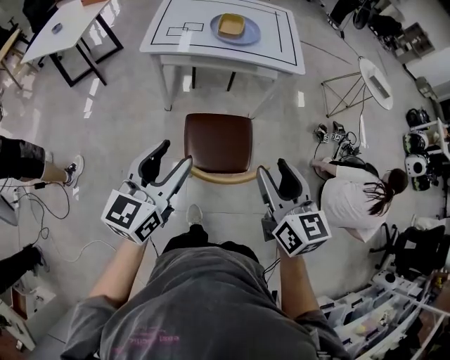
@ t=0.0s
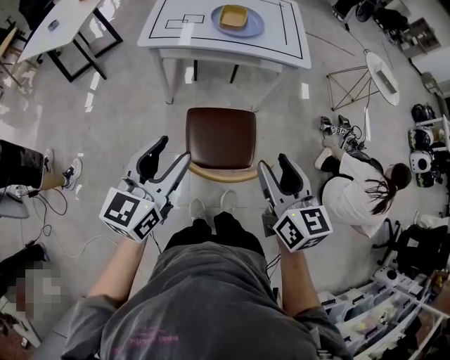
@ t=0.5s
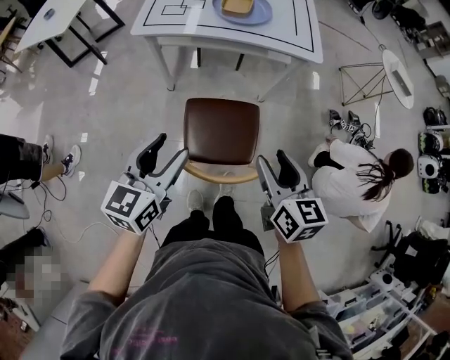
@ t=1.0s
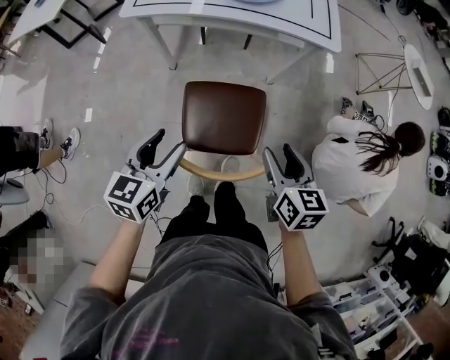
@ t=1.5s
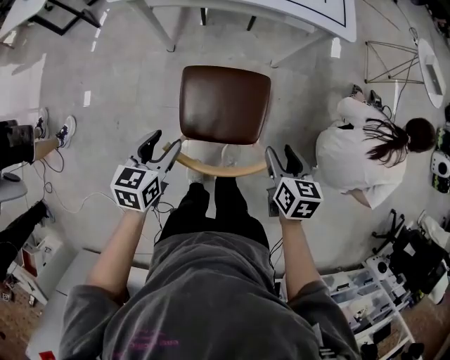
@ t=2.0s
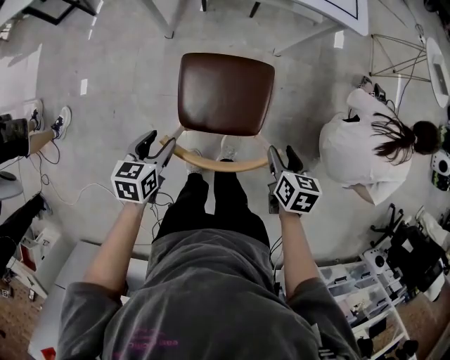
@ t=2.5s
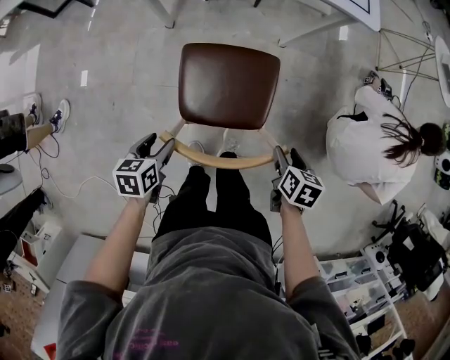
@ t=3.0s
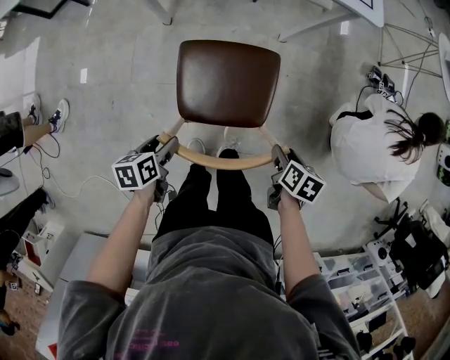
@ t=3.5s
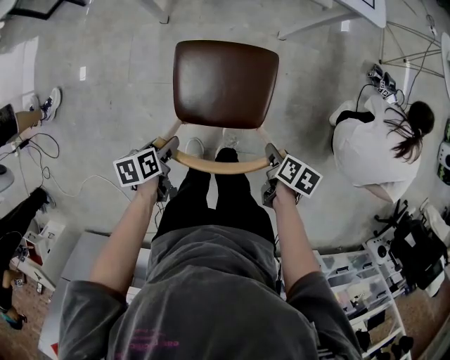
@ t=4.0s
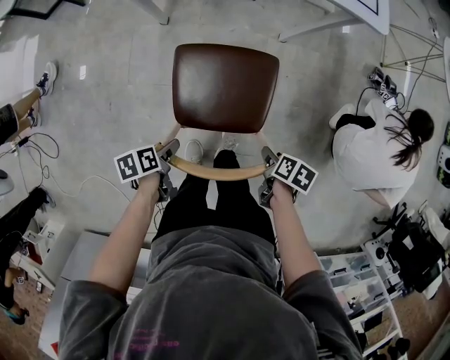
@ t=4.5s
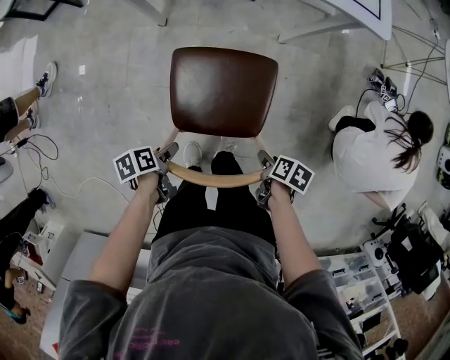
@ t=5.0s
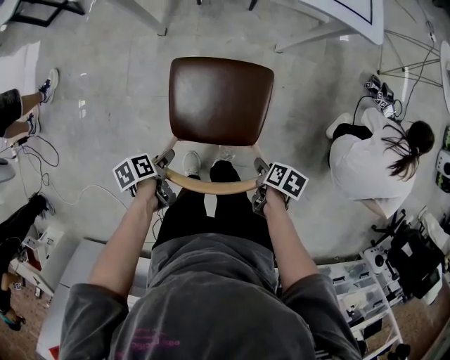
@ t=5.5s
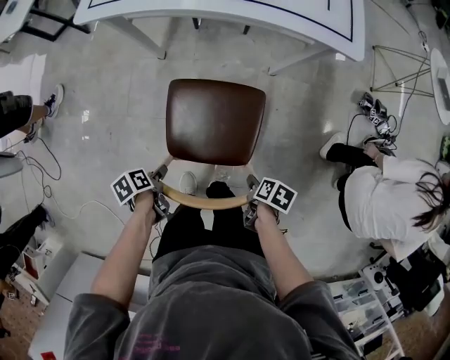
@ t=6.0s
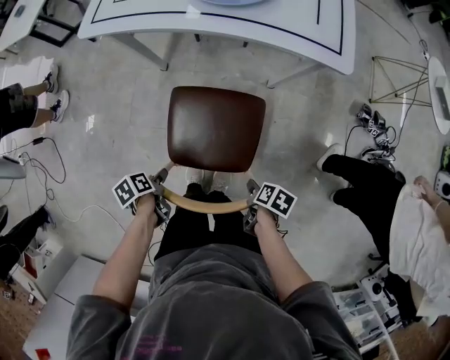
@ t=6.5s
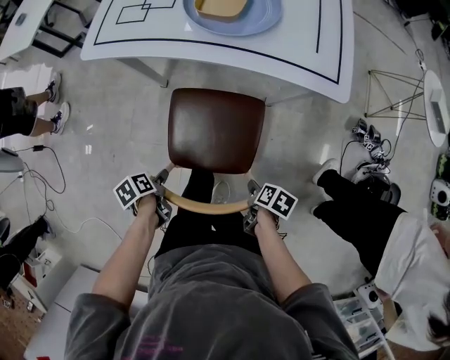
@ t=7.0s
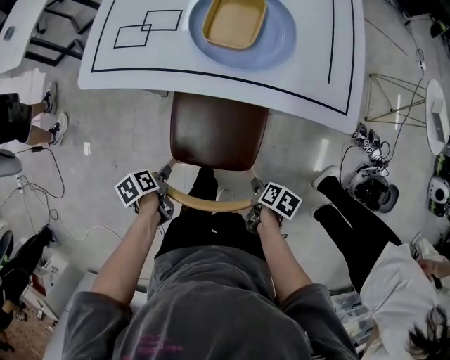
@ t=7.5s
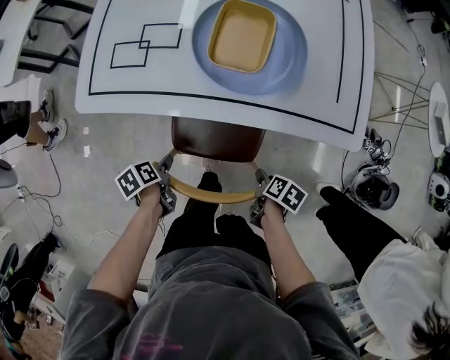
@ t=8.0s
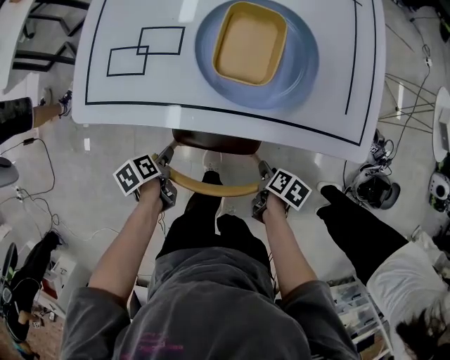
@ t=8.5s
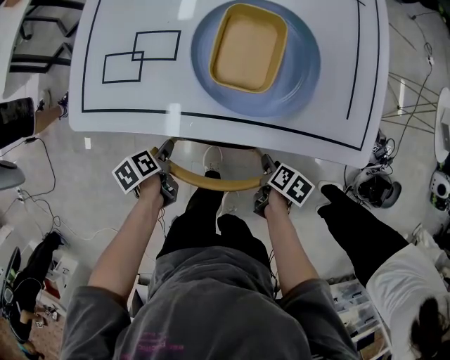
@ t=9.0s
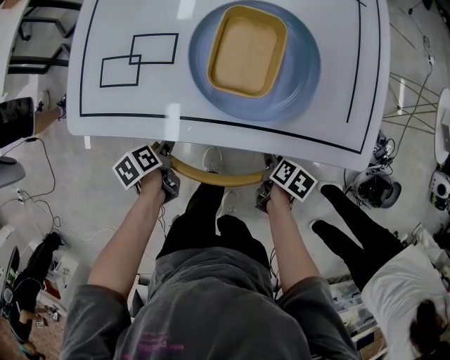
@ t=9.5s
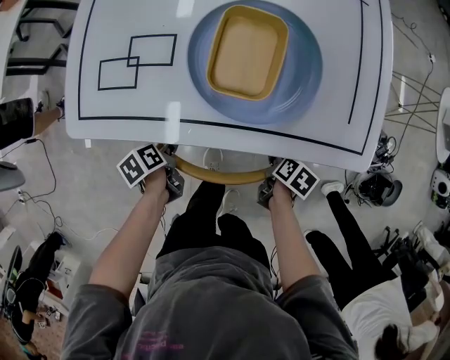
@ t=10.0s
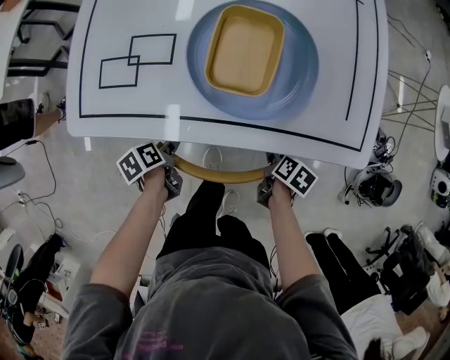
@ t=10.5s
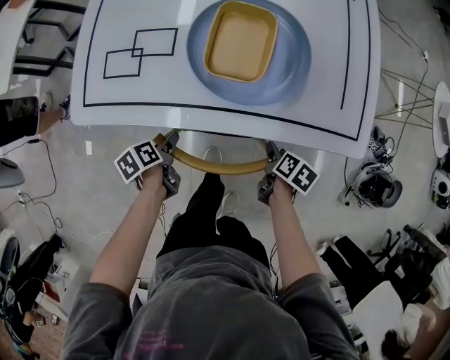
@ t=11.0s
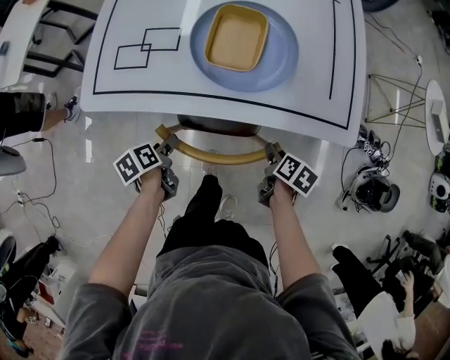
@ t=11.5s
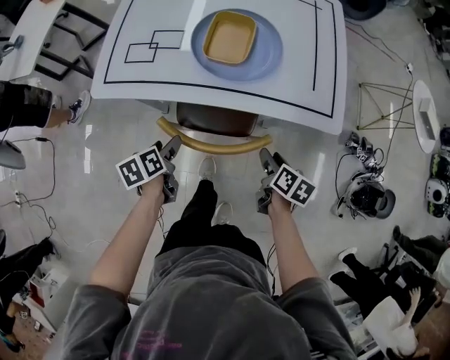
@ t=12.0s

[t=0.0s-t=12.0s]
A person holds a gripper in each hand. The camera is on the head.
t=0.0s to t=2.0s: The right gripper heads downward and forward, covering some 30 cm, and angles its fingers downward, by roughly 30 degrees. The left gripper goes some 30 cm downward, and points its fingers about 30 degrees further downward.
t=2.0s to t=4.0s: Both grippers move downward, roughly 15 cm. The right gripper rotates some 40 degrees. Meanwhile the left gripper changes its angle by about 40 degrees.
t=4.0s to t=6.0s: The left gripper changes its angle by some 20 degrees.
t=6.0s to t=8.0s: The right gripper ends up approximately 30 cm from where it was. Meanwhile the left gripper ends up about 30 cm from where it was.
t=8.0s to t=10.0s: Both grippers move forward, approximately 10 cm.
t=10.0s to t=12.0s: Both grippers move upward and backward, about 15 cm. The right gripper swivels approximately 30 degrees. The left gripper swivels roughly 20 degrees.

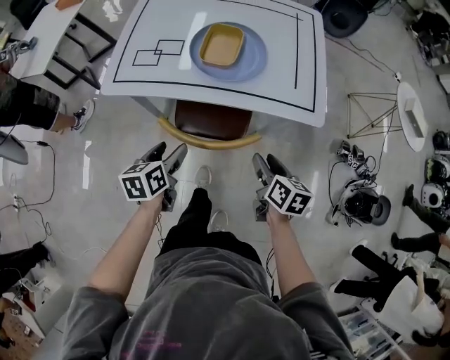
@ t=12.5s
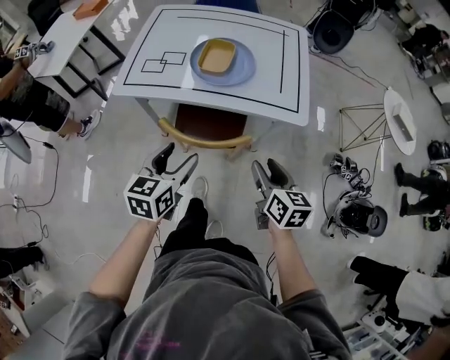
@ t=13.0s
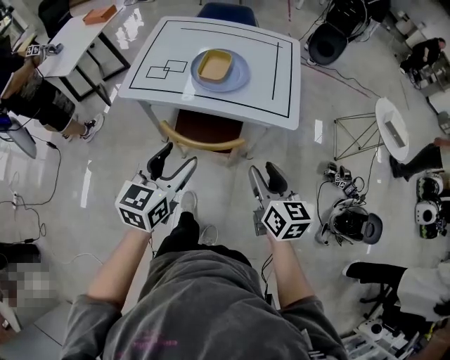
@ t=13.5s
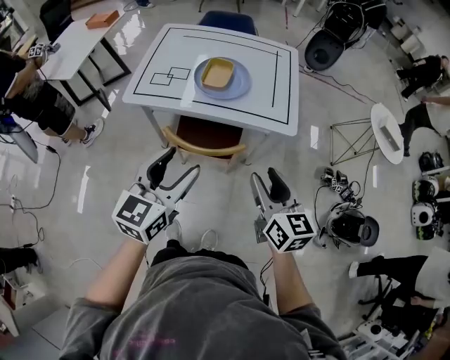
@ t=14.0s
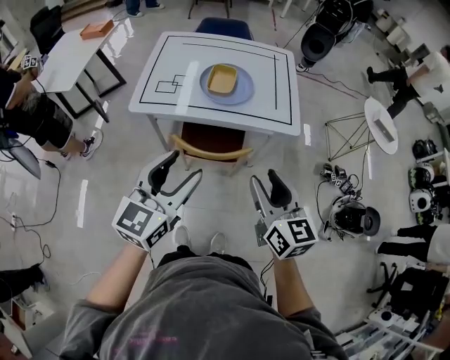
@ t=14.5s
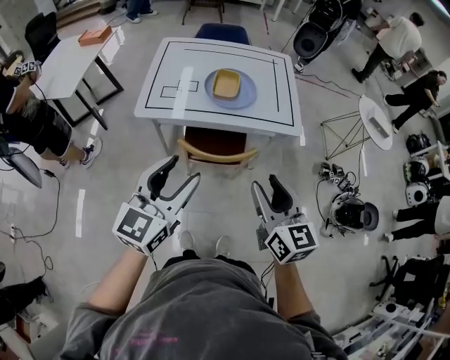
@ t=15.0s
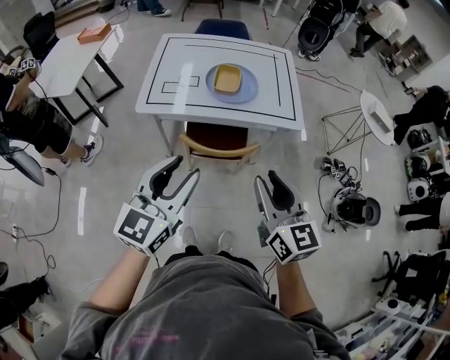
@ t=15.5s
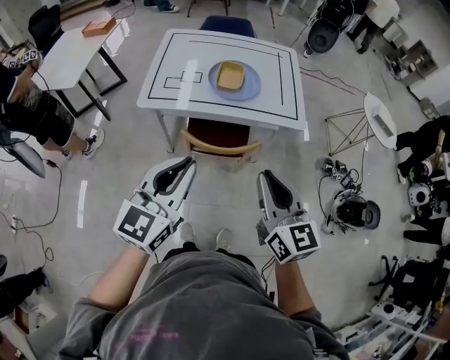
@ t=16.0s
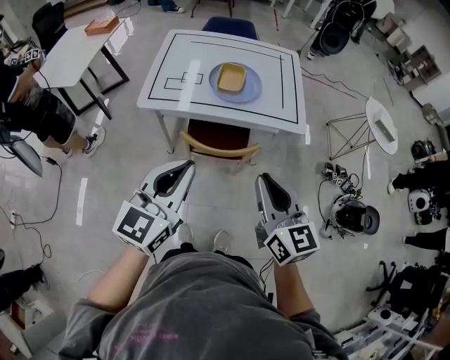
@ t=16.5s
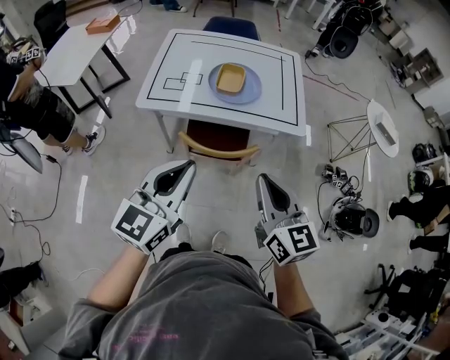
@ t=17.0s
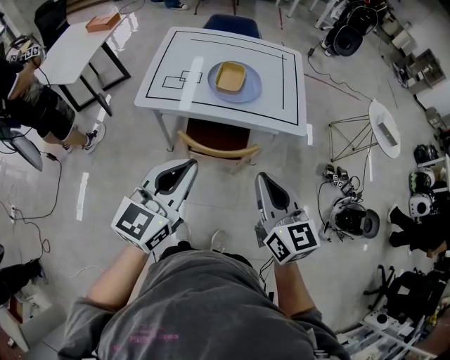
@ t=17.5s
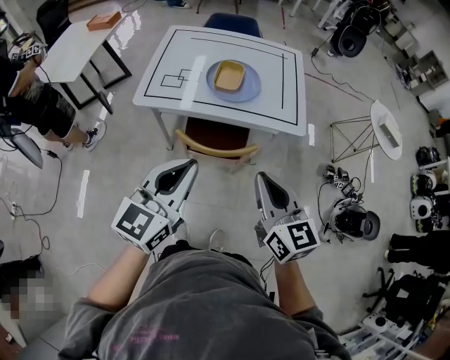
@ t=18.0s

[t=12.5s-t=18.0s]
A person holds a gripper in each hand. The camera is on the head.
t=12.5s to t=14.5s: Both grippers move upward and backward, about 30 cm. The right gripper swivels approximately 40 degrees, while the left gripper tilts its fingers about 30 degrees upward.
t=14.5s to t=16.0s: The right gripper ends up approximately 5 cm from where it was, and closes its fingers. The left gripper moves some 5 cm, and closes its fingers.
t=16.0s to t=18.0s: The right gripper changes place by approximately 5 cm; the left gripper moves approximately 5 cm.

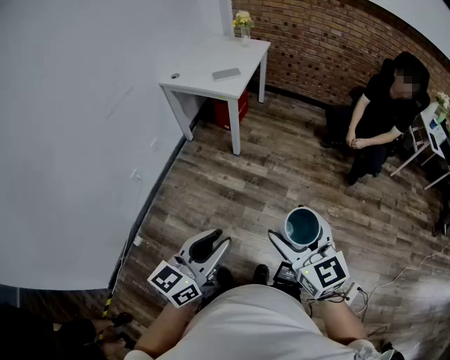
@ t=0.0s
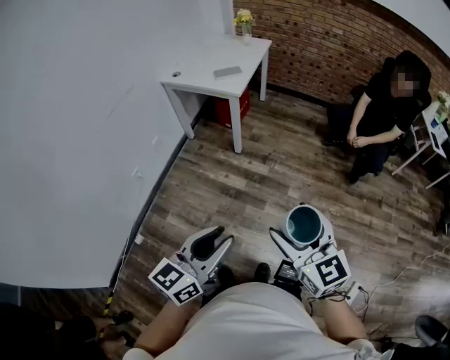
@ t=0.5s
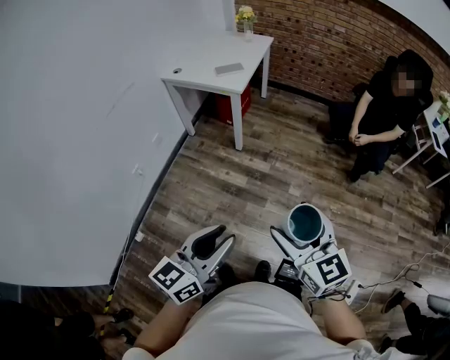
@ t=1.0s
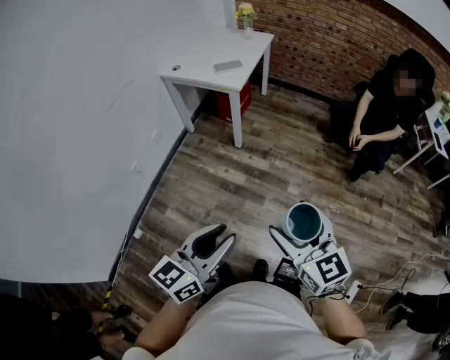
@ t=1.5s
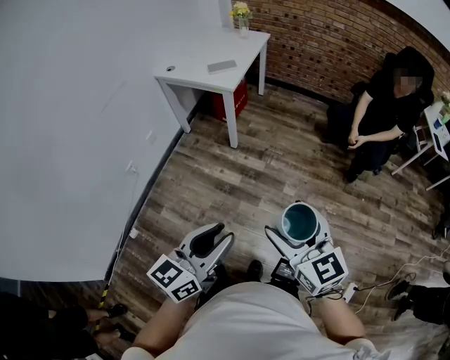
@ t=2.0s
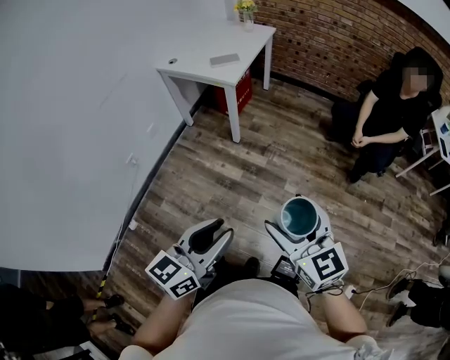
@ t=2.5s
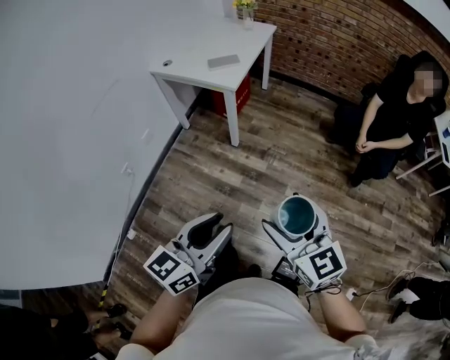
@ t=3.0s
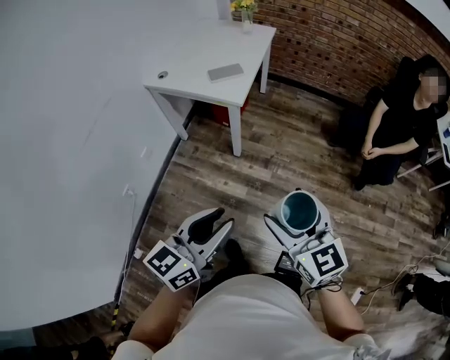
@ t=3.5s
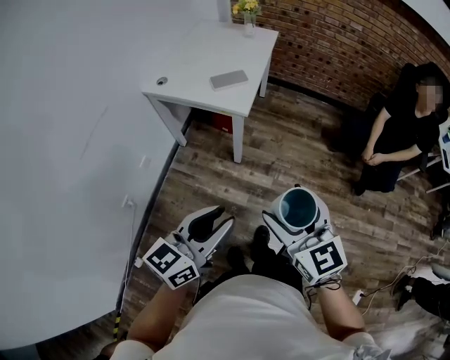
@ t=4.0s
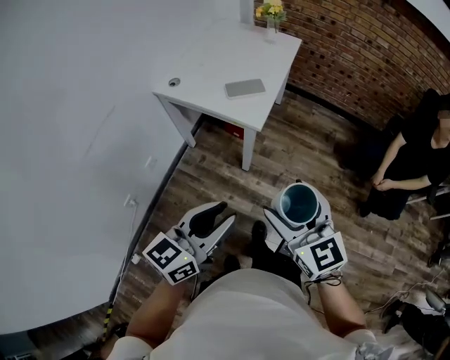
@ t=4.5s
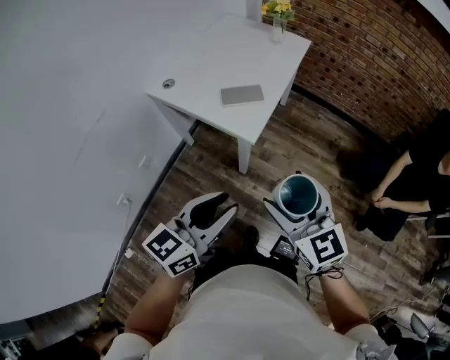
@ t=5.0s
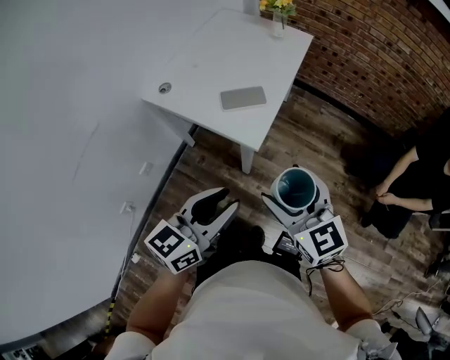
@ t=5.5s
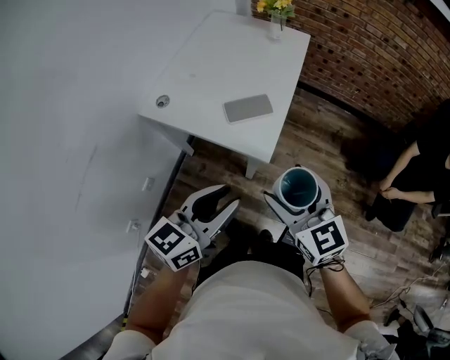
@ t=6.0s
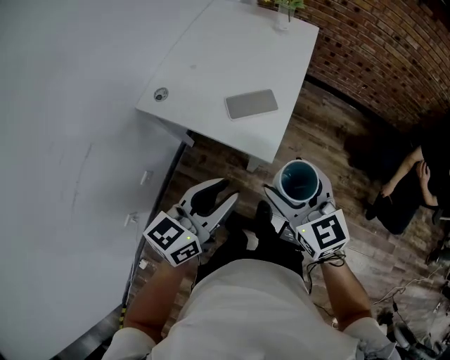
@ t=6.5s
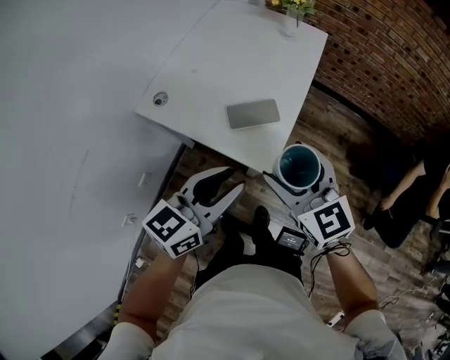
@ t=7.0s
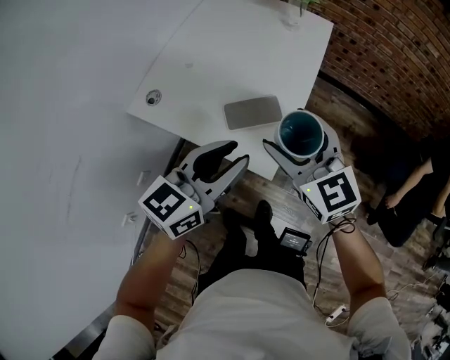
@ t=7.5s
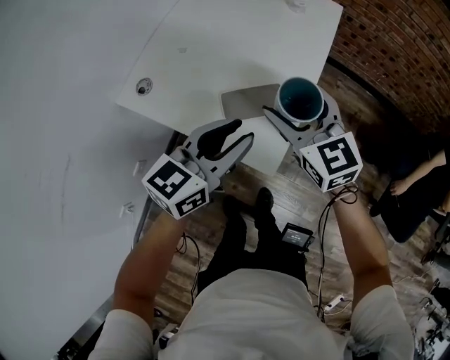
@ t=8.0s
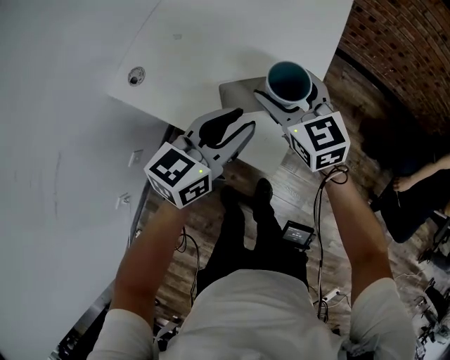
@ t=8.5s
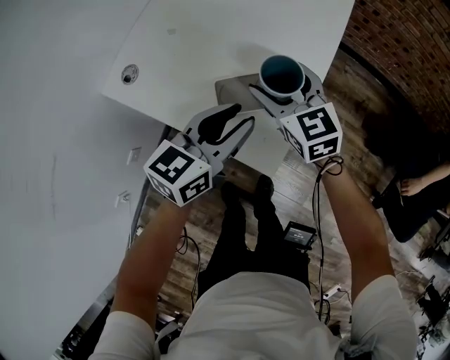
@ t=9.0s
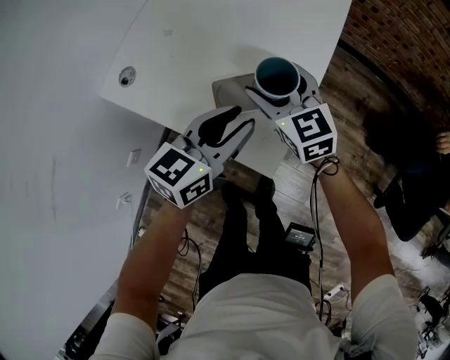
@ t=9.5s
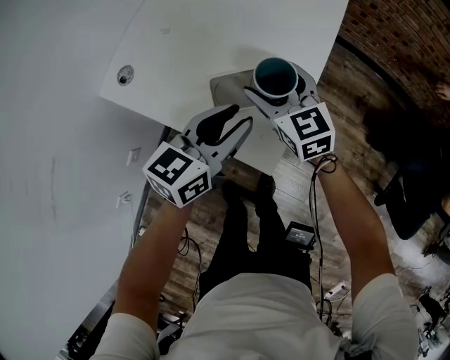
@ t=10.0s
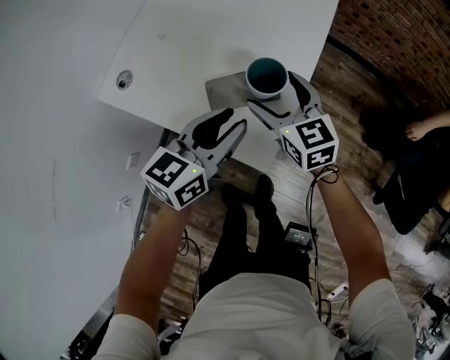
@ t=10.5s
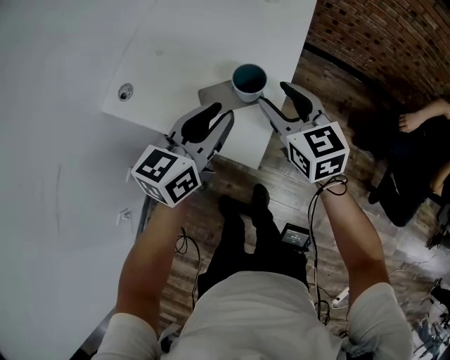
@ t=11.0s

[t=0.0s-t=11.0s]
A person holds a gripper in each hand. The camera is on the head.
t=0.0s to t=2.0s: The left gripper shifts roughly 5 cm to the right.
t=2.0s to t=3.5s: The right gripper travels forward and to the left by roughly 25 cm, while the left gripper heads forward, covering roughly 25 cm.
t=3.5s to t=5.5s: Both grippers move forward, some 30 cm.
t=5.5s to t=7.5s: Both grippers travel together forward, about 25 cm.
t=7.5s to t=9.0s: The two grippers go roughly 15 cm downward and forward.
t=9.0s to t=11.0s: The right gripper shifts about 10 cm to the right, upward and backward; the left gripper shifts about 5 cm upward.
